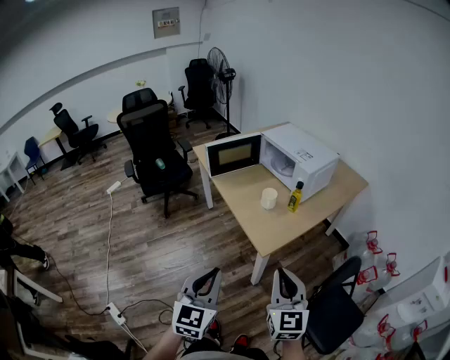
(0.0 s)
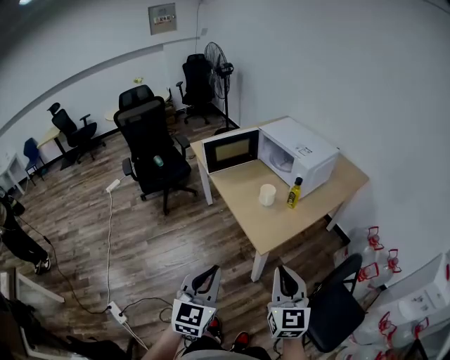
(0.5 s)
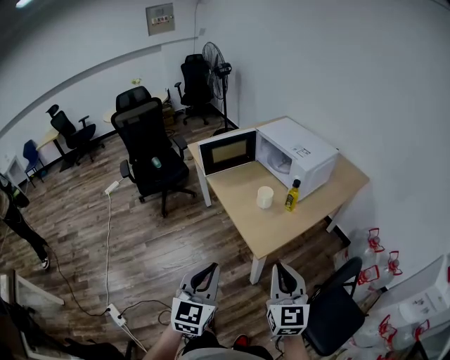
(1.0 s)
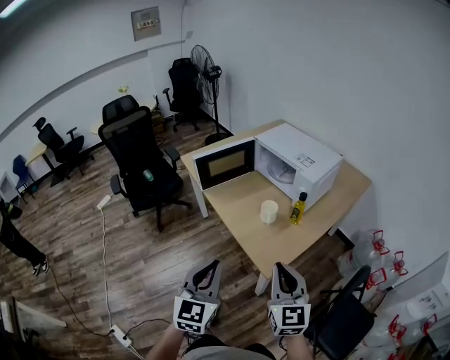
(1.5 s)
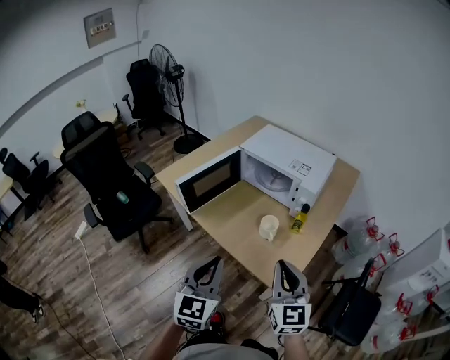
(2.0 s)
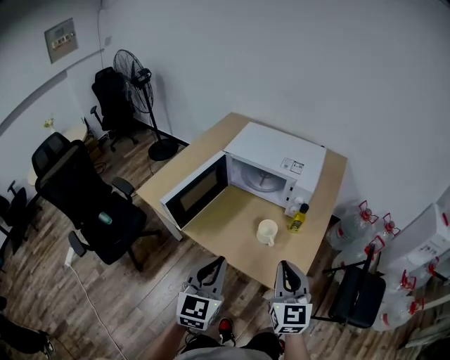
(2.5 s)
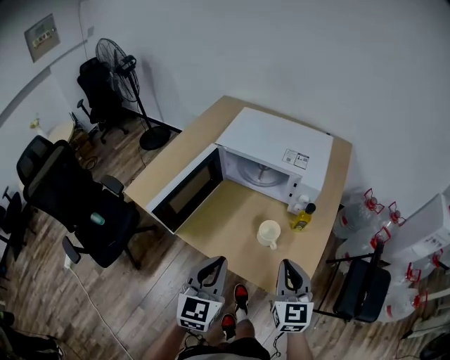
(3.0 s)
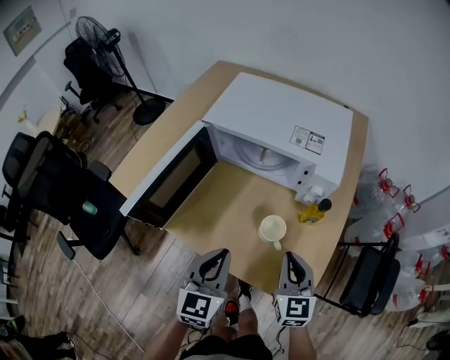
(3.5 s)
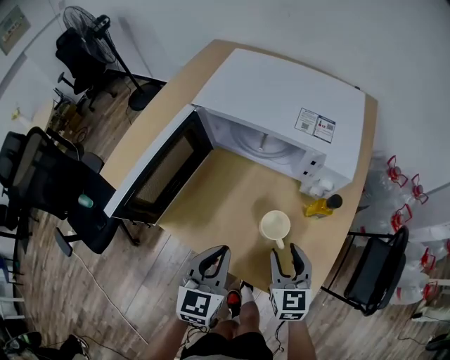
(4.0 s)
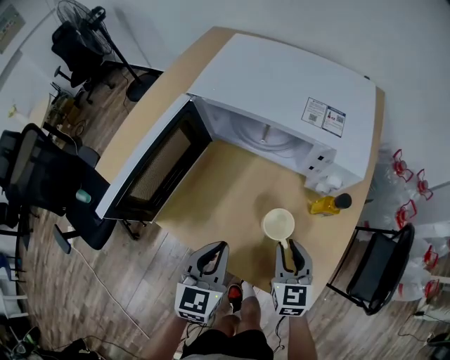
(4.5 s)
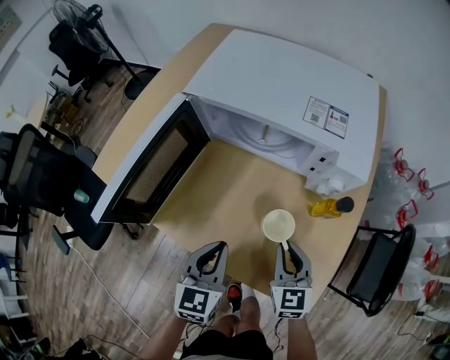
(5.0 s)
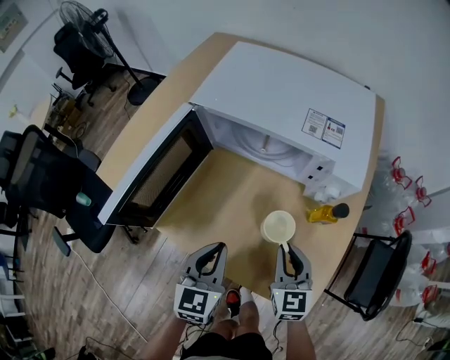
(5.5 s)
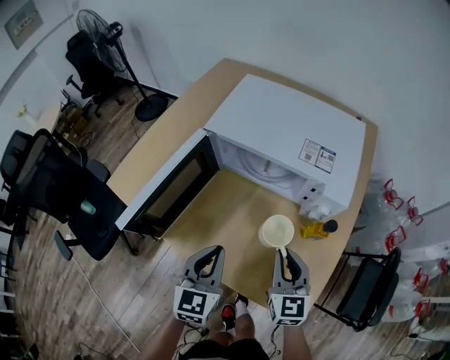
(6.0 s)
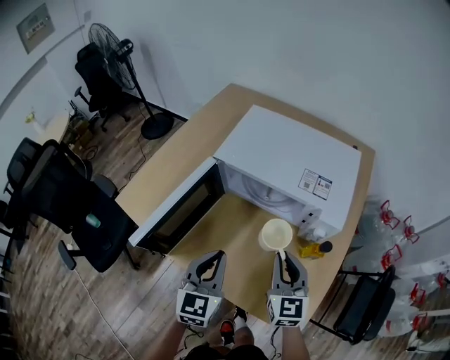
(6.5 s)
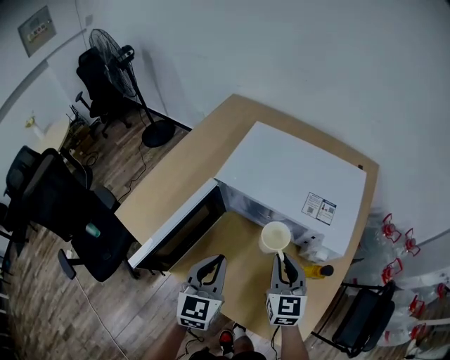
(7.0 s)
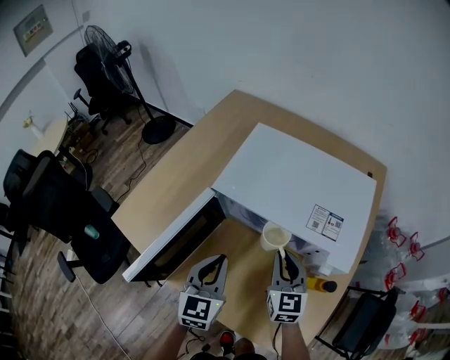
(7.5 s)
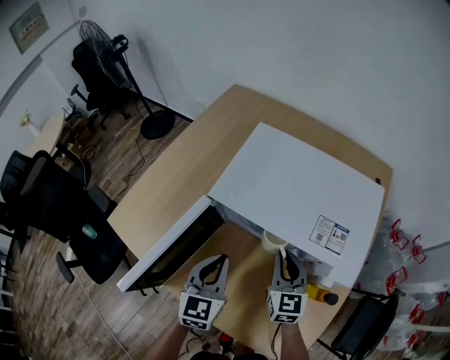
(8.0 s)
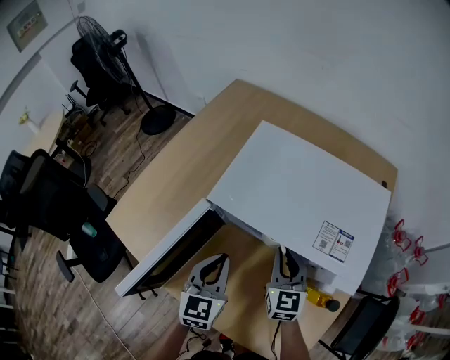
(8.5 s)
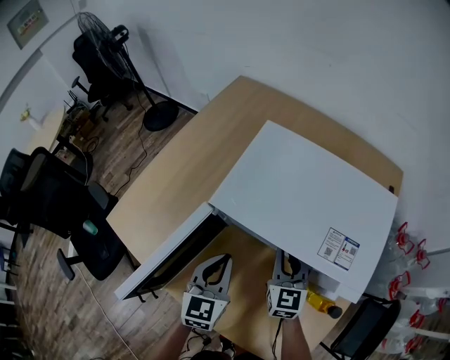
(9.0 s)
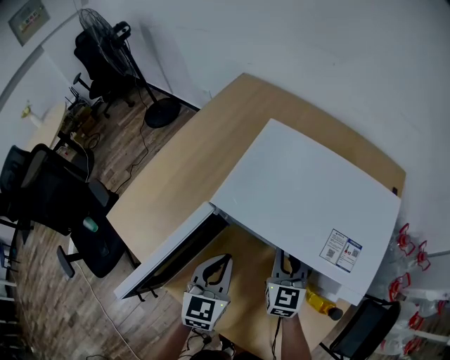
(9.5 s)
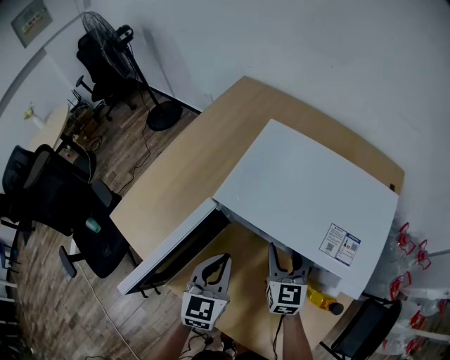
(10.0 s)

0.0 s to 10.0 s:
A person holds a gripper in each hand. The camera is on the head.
0.0 to 2.0 s: Both grippers travel together forward, about 30 cm.
2.0 to 4.0 s: The right gripper travels downward and forward by roughly 30 cm, changes its angle by roughly 30 degrees, and opens its fingers; the left gripper heads forward and downward, covering approximately 30 cm, and swivels about 20 degrees.
4.0 to 6.0 s: The right gripper shifts some 5 cm upward, and closes. Meanwhile the left gripper ends up about 5 cm from where it was.
6.0 to 8.0 s: Both grippers move forward, approximately 15 cm.
8.0 to 10.0 s: The right gripper ends up roughly 5 cm from where it was, and opens up.

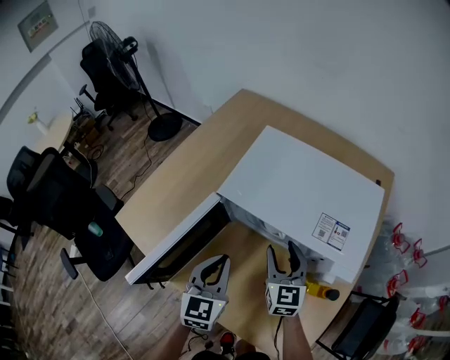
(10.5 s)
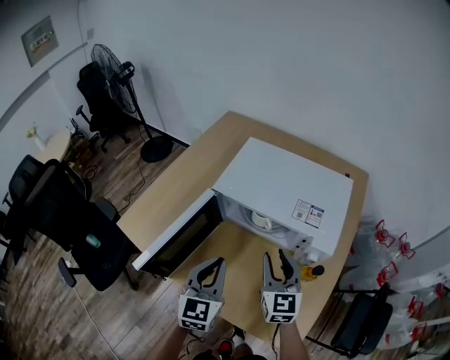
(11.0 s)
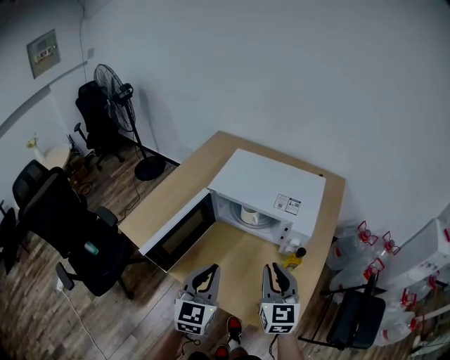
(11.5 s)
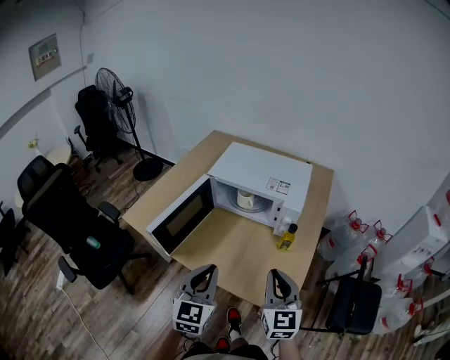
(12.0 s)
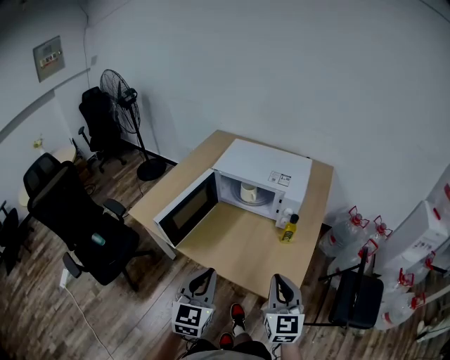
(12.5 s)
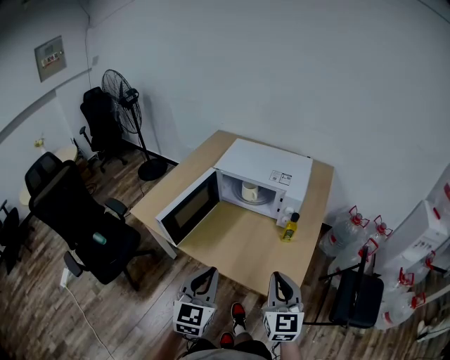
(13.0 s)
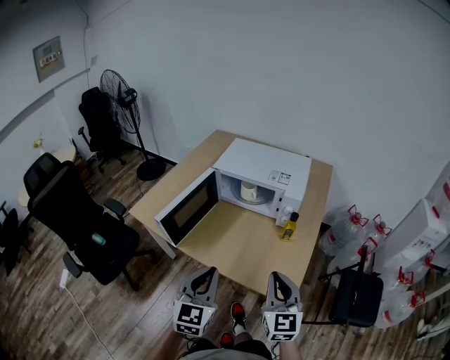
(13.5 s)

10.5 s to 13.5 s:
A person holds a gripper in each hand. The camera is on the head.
10.5 to 12.0 s: Both grippers move backward and upward, some 35 cm. The right gripper closes.
12.0 to 13.5 s: Both grippers move backward, some 5 cm.

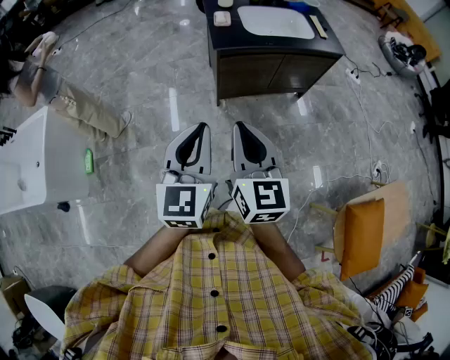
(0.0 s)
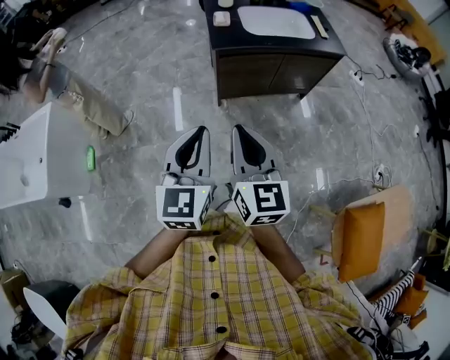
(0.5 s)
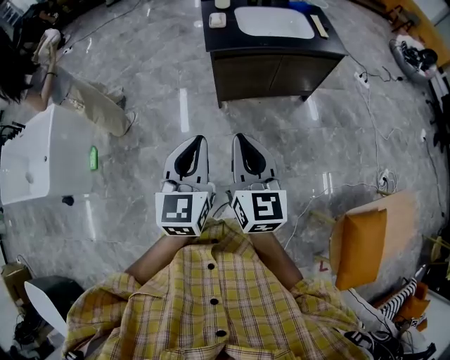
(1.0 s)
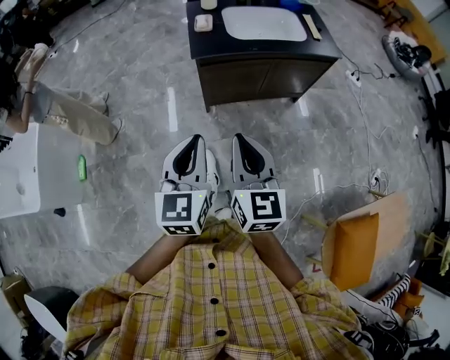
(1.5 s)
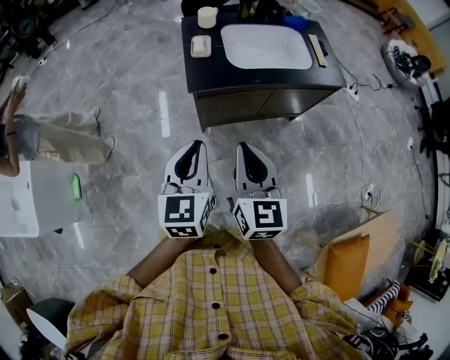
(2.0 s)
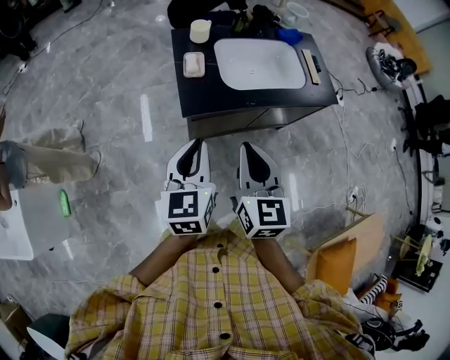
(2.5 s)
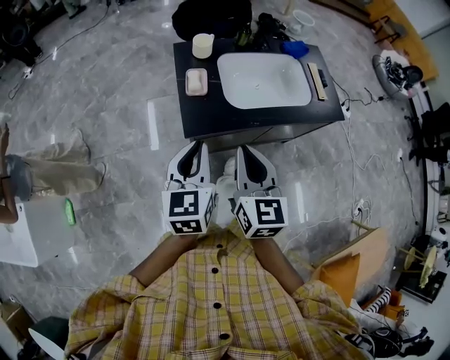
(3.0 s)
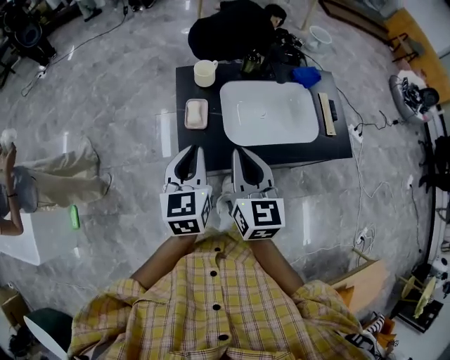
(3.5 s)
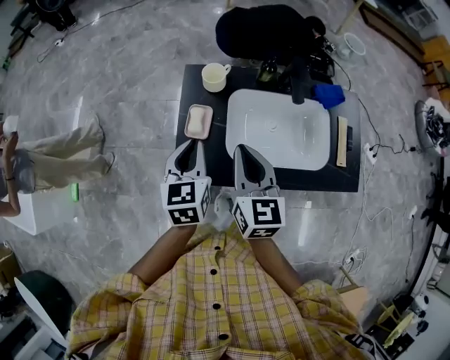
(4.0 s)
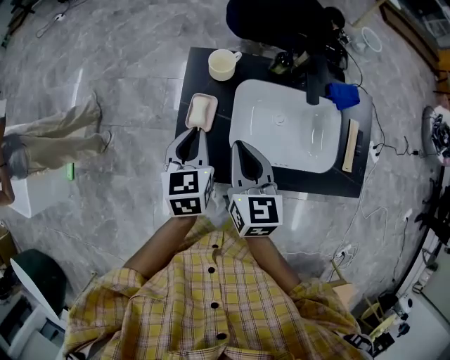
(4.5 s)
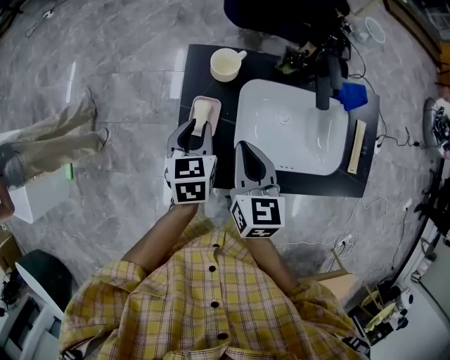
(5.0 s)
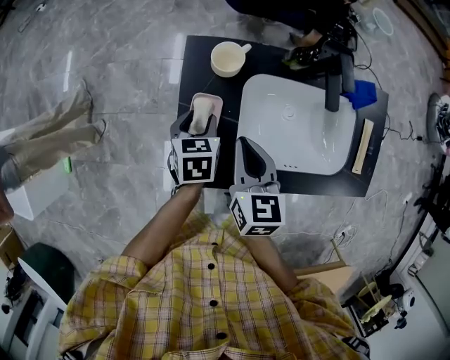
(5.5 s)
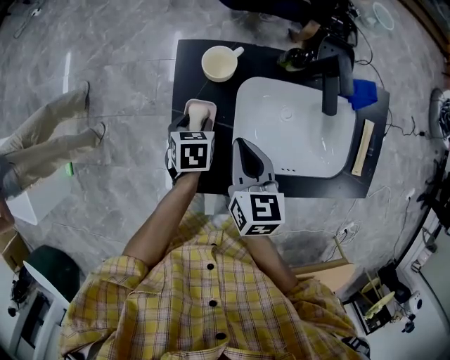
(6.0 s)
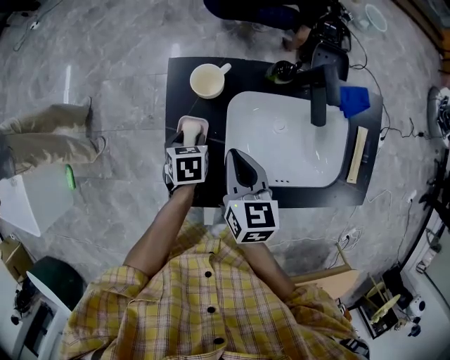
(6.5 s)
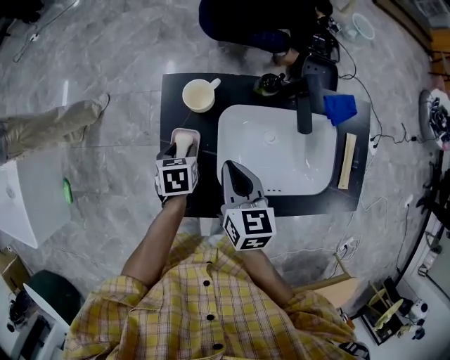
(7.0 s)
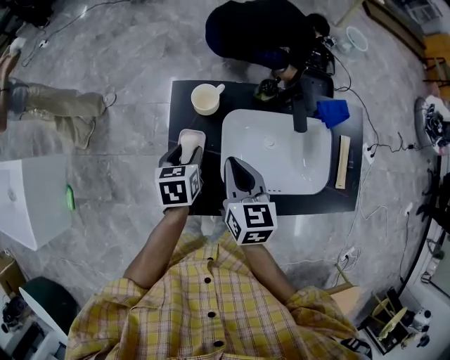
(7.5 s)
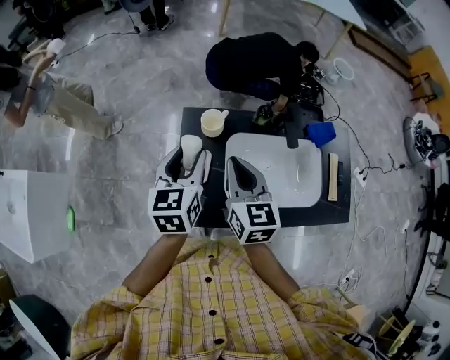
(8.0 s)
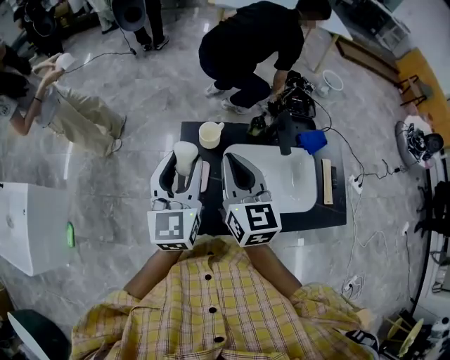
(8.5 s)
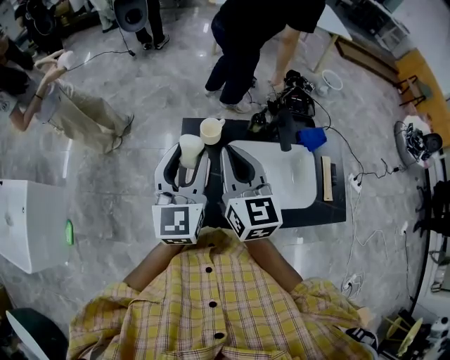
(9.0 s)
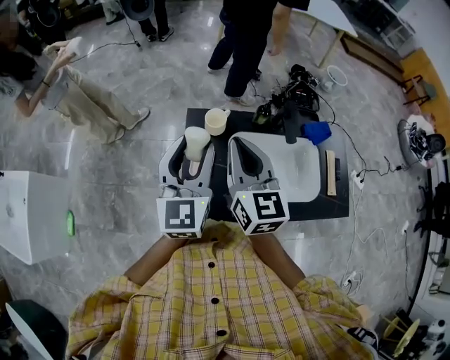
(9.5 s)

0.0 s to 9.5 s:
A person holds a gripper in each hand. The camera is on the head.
0.0 to 2.0 s: The left gripper moves forward, some 30 cm; the right gripper heads forward and to the right, covering about 30 cm.
2.0 to 4.0 s: Both grippers are carried forward, some 50 cm.
4.0 to 5.5 s: Both grippers travel together downward and forward, about 20 cm. The left gripper changes its angle by roughly 20 degrees, and opens its fingers.
5.5 to 7.5 s: The left gripper shifts some 5 cm upward. Meanwhile the right gripper changes place by about 5 cm.
7.5 to 9.5 s: Both grippers move upward, some 25 cm. The left gripper tilts its fingers some 50 degrees upward. The right gripper turns by approximately 30 degrees.

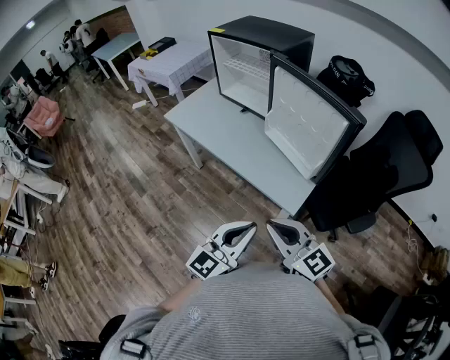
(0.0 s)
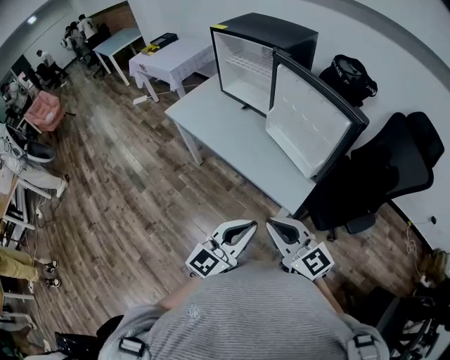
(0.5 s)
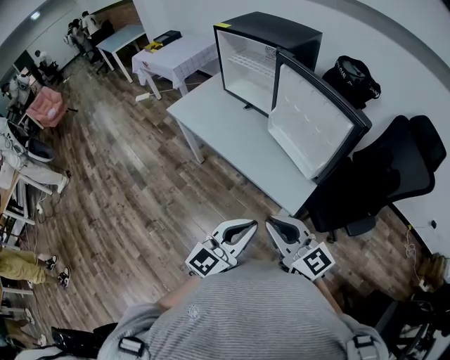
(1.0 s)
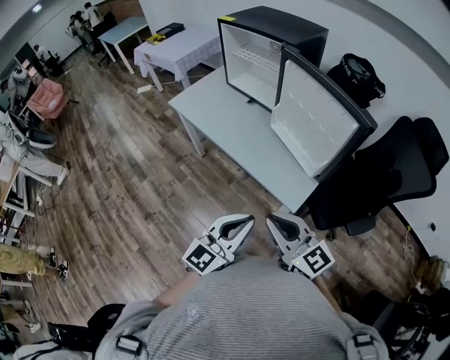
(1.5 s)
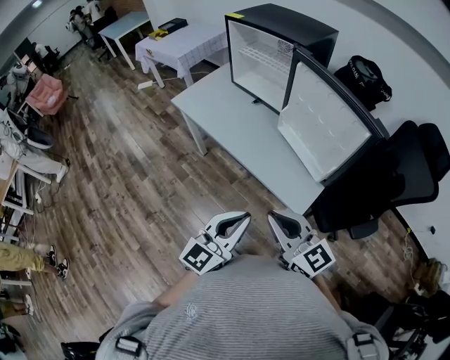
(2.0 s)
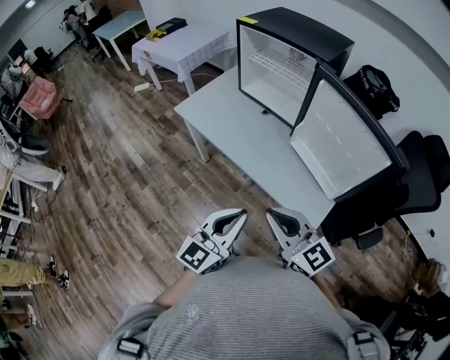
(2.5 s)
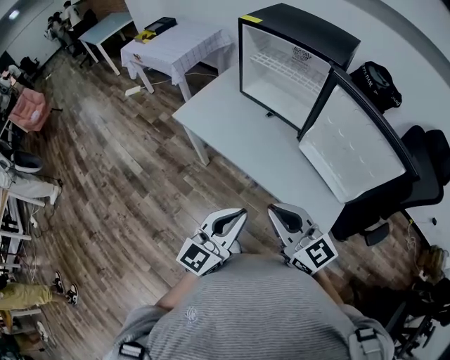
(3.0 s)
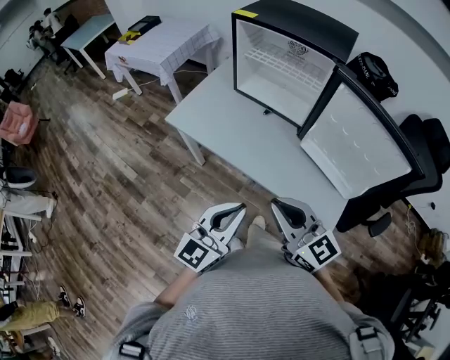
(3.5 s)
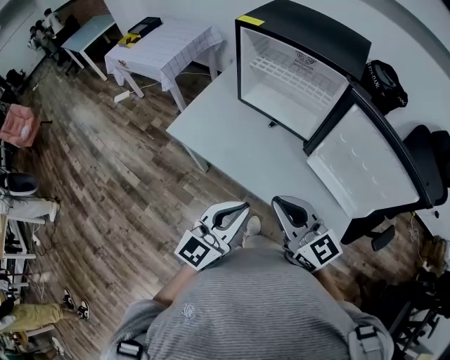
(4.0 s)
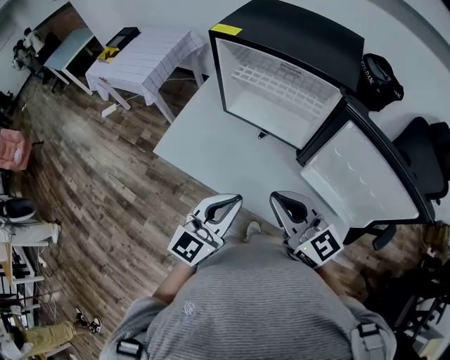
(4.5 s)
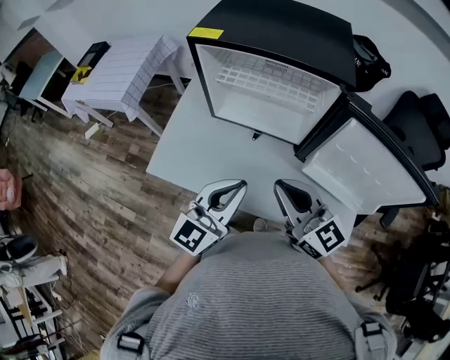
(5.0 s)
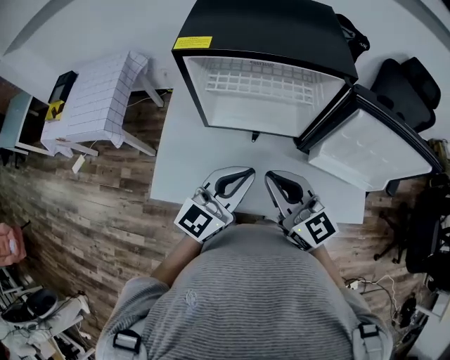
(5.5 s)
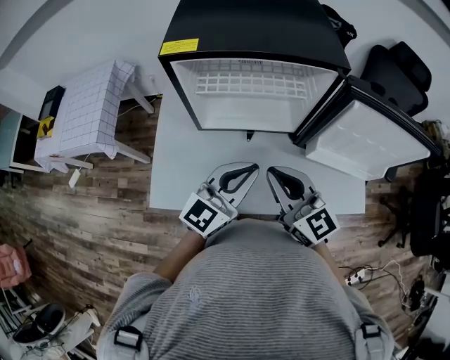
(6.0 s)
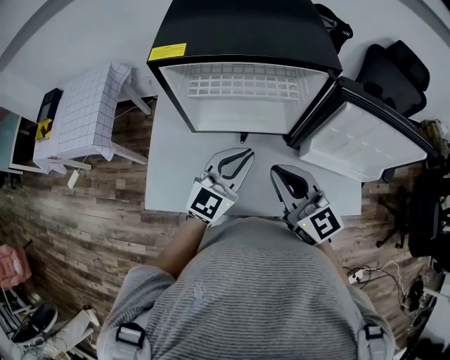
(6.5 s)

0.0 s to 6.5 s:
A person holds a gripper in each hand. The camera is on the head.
0.0 to 2.0 s: The right gripper goes roughly 5 cm forward. The left gripper shifts by about 5 cm.
2.0 to 4.5 s: The two grippers go approximately 40 cm forward and to the left.
4.5 to 6.5 s: The right gripper changes place by some 10 cm, and turns by about 30 degrees, while the left gripper ends up roughly 20 cm from where it was, and swivels roughly 30 degrees.
